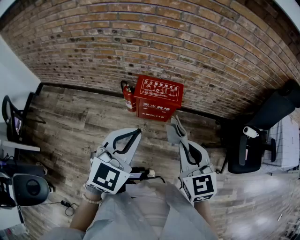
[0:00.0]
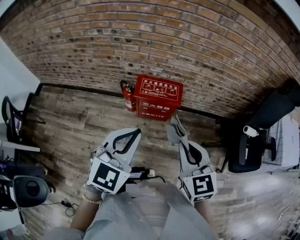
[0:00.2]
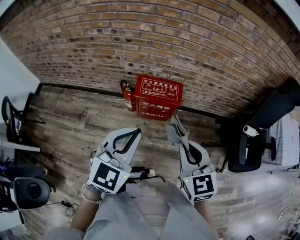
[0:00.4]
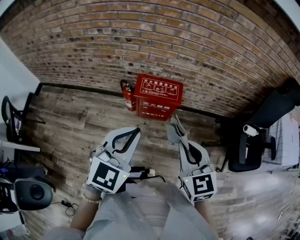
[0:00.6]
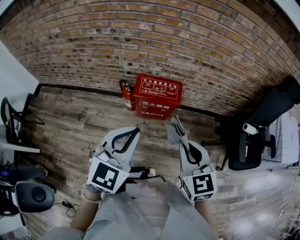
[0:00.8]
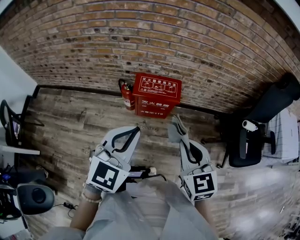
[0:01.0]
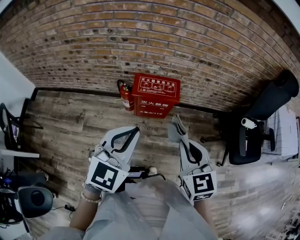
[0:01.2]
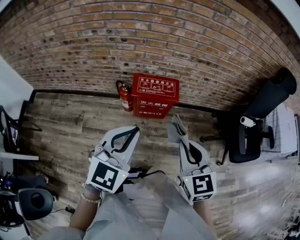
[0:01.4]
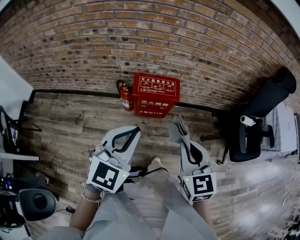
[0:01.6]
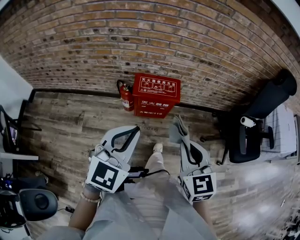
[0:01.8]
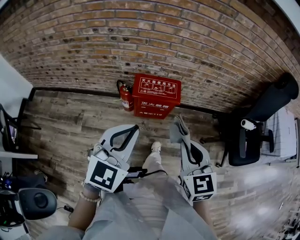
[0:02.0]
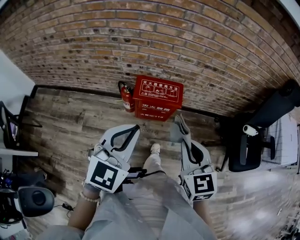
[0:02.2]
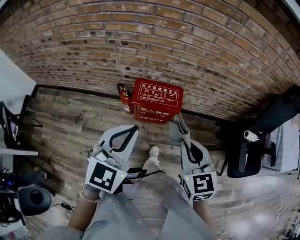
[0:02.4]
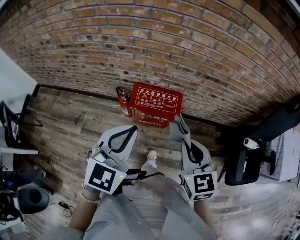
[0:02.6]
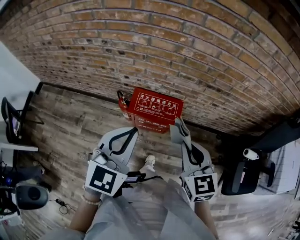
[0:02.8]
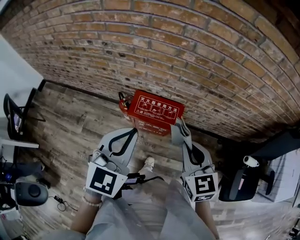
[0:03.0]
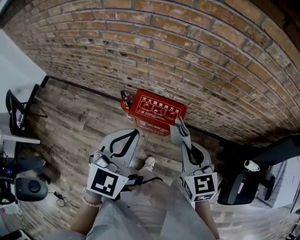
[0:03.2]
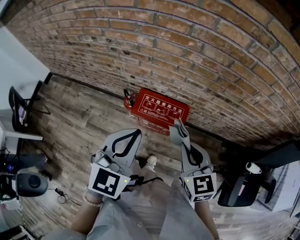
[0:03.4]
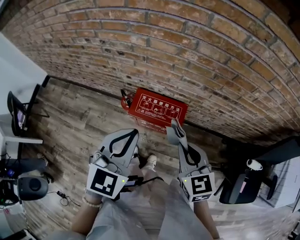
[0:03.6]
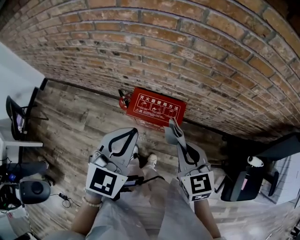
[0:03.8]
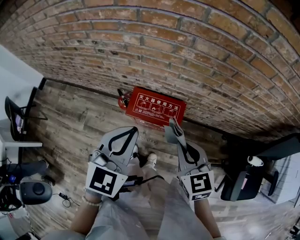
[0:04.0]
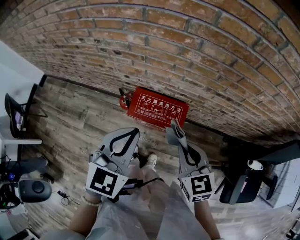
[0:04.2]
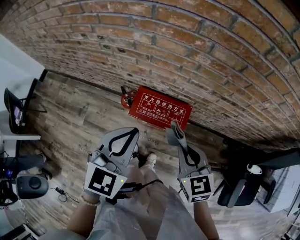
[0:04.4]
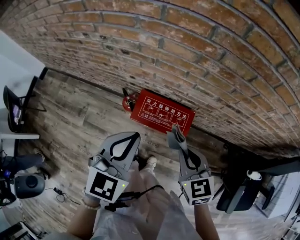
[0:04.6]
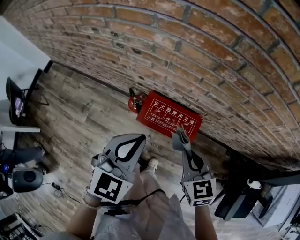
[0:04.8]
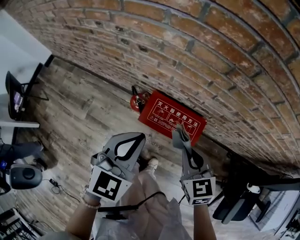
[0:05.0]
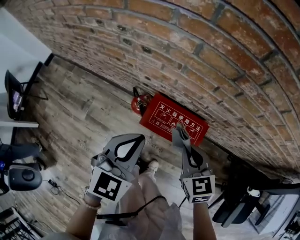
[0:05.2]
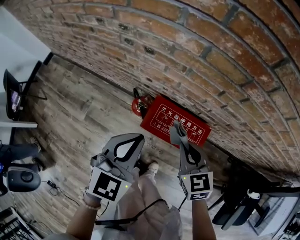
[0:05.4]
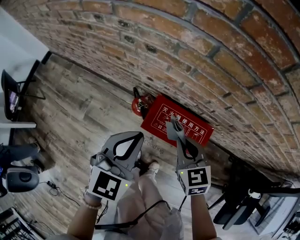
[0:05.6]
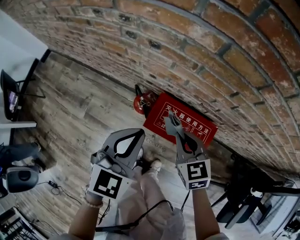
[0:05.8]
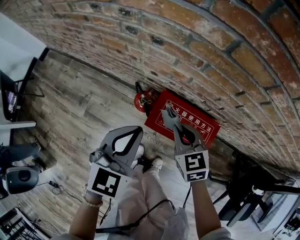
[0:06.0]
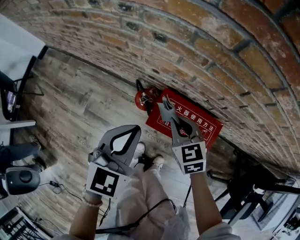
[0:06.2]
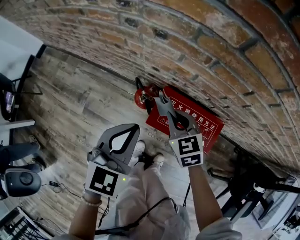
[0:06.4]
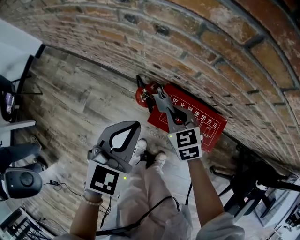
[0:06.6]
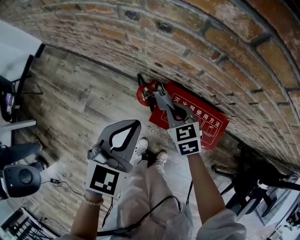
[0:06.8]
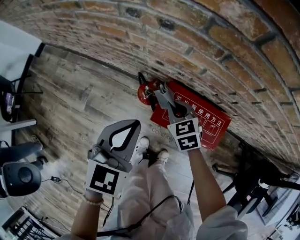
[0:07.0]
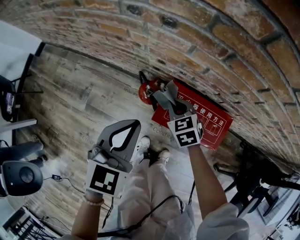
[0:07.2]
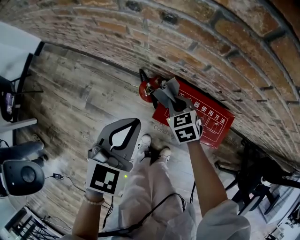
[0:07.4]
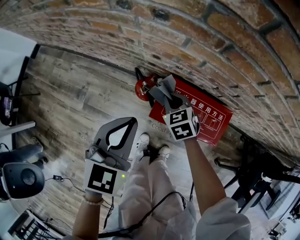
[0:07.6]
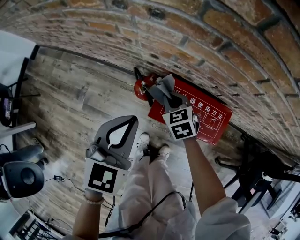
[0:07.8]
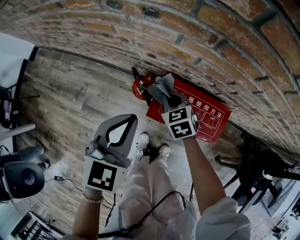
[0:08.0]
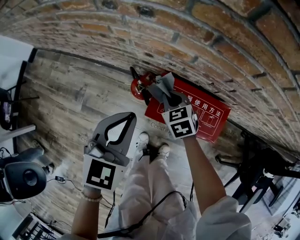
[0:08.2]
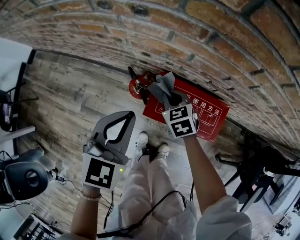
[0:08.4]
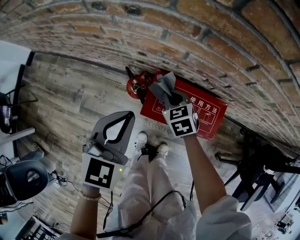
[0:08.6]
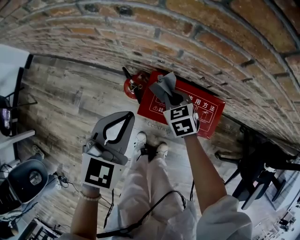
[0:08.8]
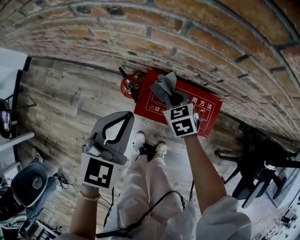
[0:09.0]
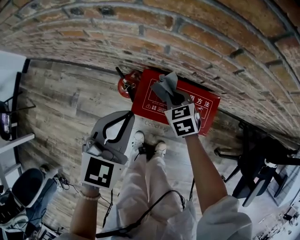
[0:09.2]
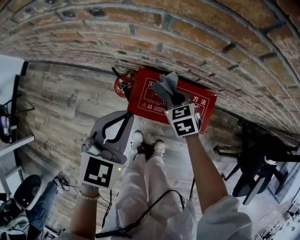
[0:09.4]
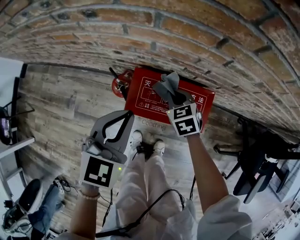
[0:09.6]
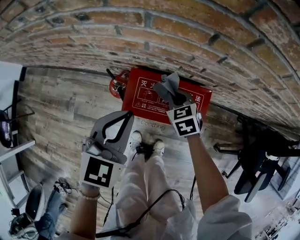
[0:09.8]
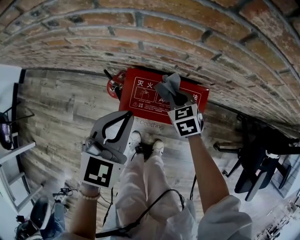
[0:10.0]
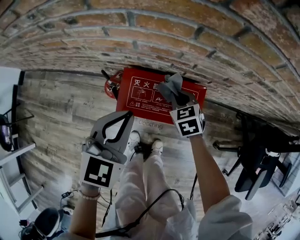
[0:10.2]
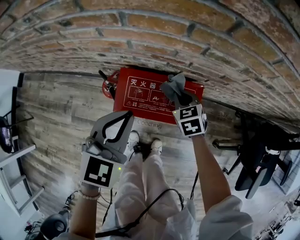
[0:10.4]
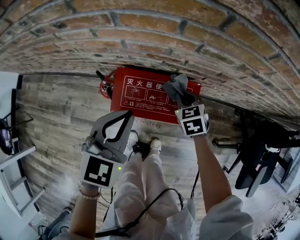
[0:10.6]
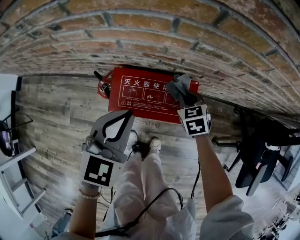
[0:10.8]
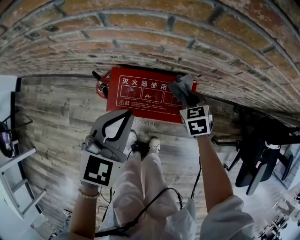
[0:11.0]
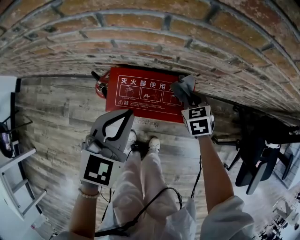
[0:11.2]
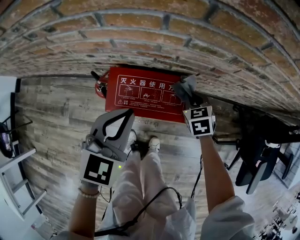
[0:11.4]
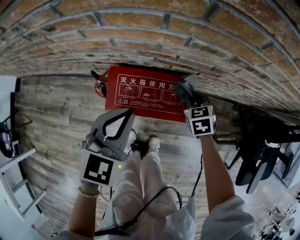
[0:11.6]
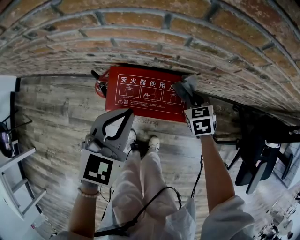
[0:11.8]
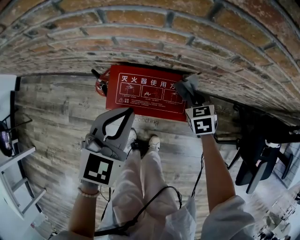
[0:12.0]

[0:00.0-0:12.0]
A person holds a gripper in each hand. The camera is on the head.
0:00.0 to 0:01.6: There are only small adjustments of the grippers.
0:01.6 to 0:03.0: The two grippers go roughly 25 cm forward.
0:03.0 to 0:04.4: The left gripper goes roughly 5 cm forward. The right gripper shifts about 10 cm downward and forward.
0:04.4 to 0:06.0: The right gripper moves downward, forward and to the left, roughly 30 cm. The left gripper moves downward, to the left and forward, some 20 cm.
0:06.0 to 0:07.6: The right gripper is displaced downward and forward by roughly 15 cm. The left gripper shifts approximately 5 cm downward.
0:07.6 to 0:09.0: Both grippers move to the right, approximately 5 cm.
0:09.0 to 0:10.4: The left gripper heads to the right, covering some 10 cm. Meanwhile the right gripper travels to the right by about 15 cm.
0:10.4 to 0:12.0: The right gripper goes approximately 10 cm to the right.

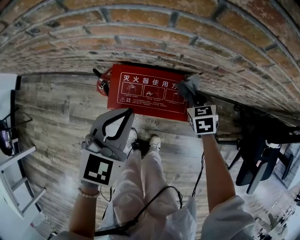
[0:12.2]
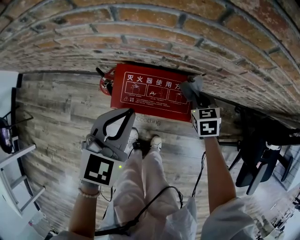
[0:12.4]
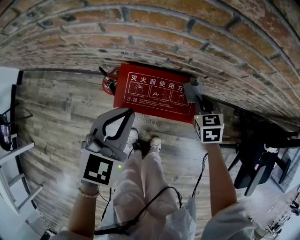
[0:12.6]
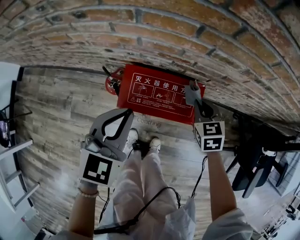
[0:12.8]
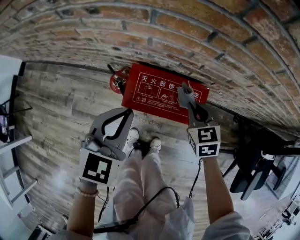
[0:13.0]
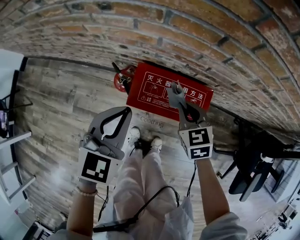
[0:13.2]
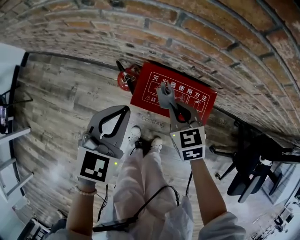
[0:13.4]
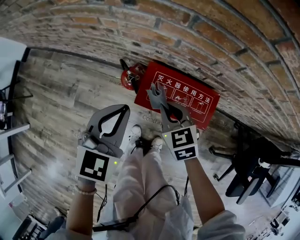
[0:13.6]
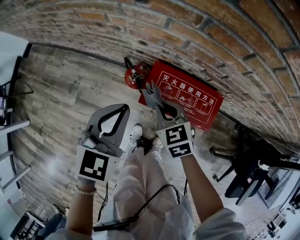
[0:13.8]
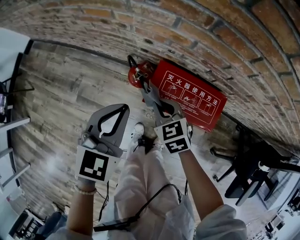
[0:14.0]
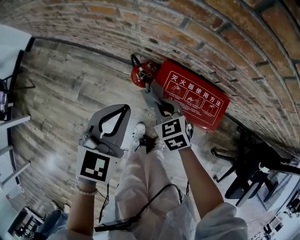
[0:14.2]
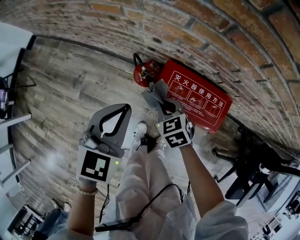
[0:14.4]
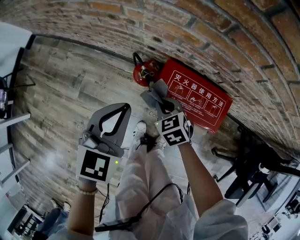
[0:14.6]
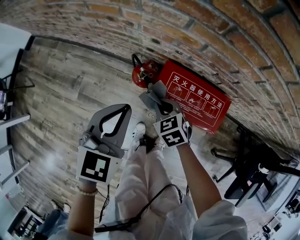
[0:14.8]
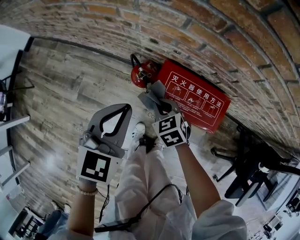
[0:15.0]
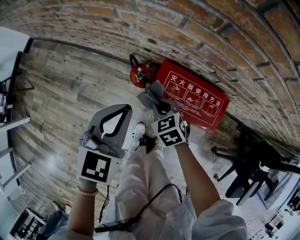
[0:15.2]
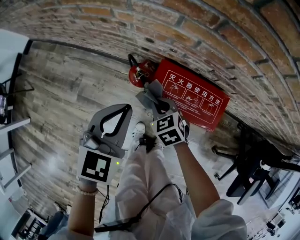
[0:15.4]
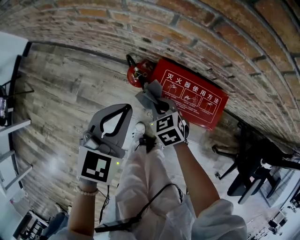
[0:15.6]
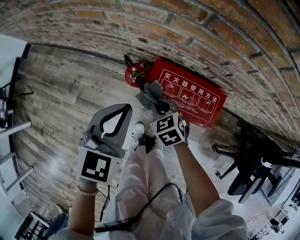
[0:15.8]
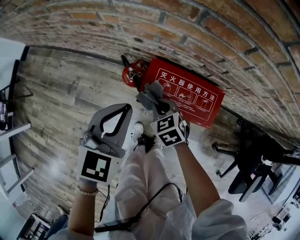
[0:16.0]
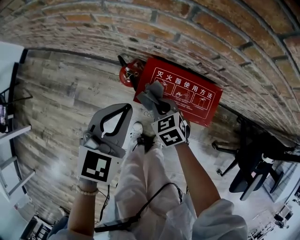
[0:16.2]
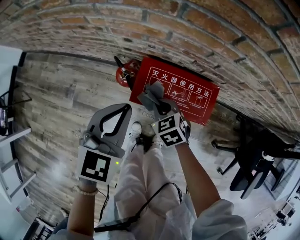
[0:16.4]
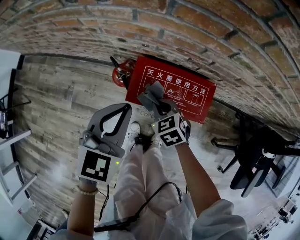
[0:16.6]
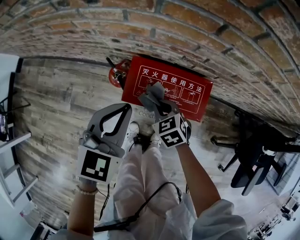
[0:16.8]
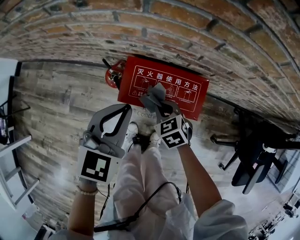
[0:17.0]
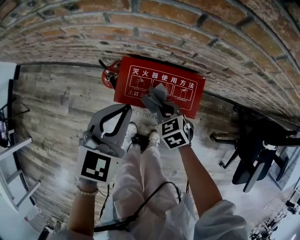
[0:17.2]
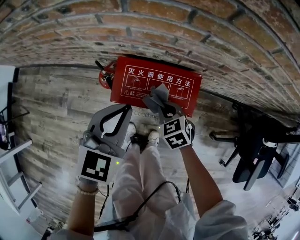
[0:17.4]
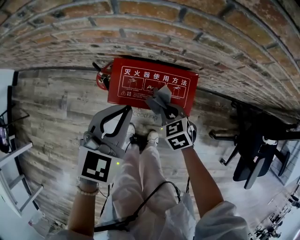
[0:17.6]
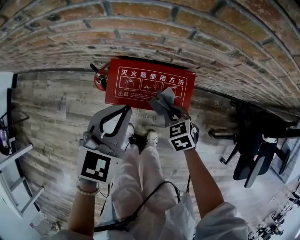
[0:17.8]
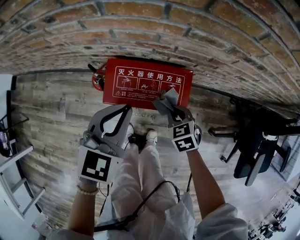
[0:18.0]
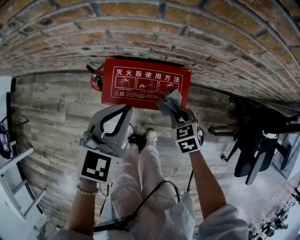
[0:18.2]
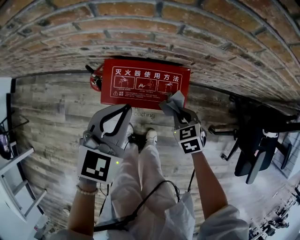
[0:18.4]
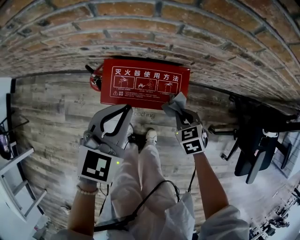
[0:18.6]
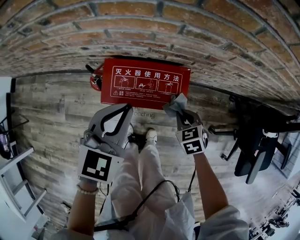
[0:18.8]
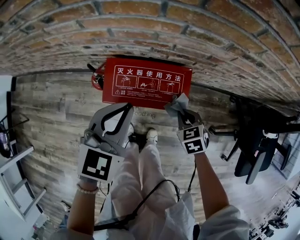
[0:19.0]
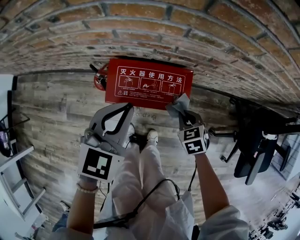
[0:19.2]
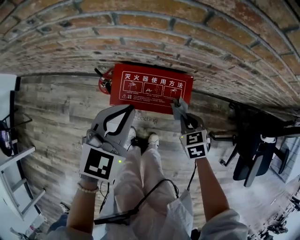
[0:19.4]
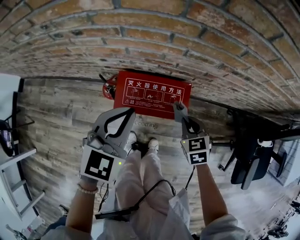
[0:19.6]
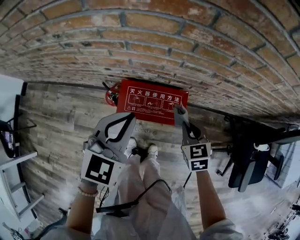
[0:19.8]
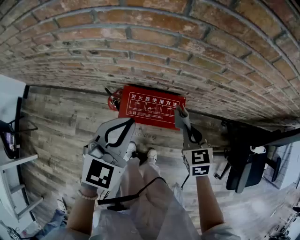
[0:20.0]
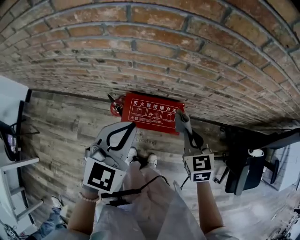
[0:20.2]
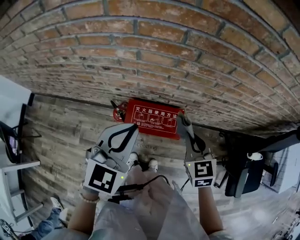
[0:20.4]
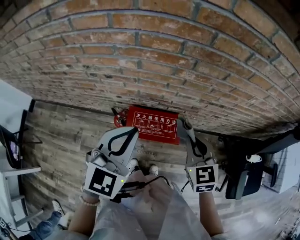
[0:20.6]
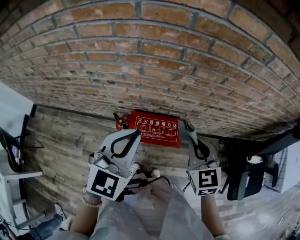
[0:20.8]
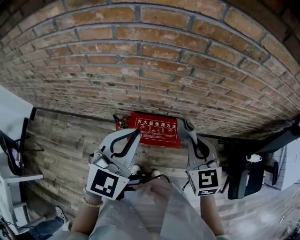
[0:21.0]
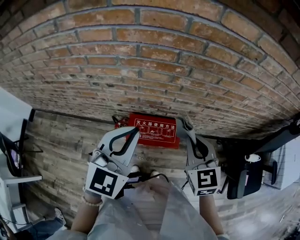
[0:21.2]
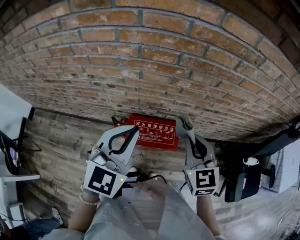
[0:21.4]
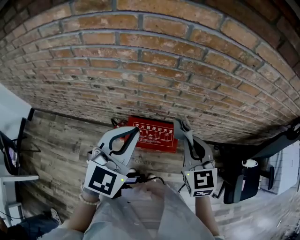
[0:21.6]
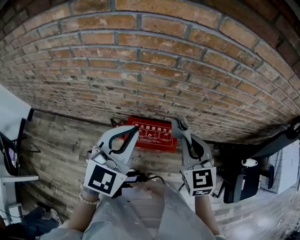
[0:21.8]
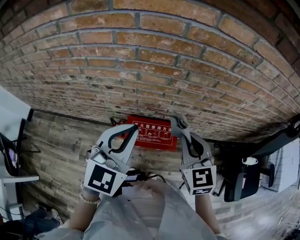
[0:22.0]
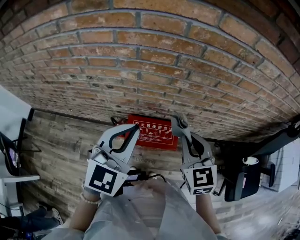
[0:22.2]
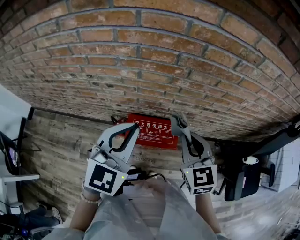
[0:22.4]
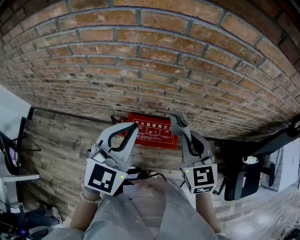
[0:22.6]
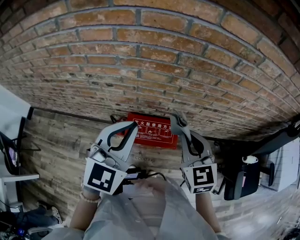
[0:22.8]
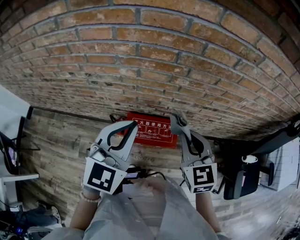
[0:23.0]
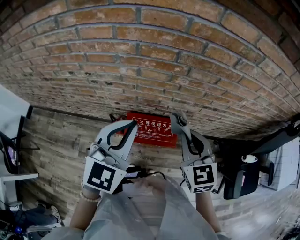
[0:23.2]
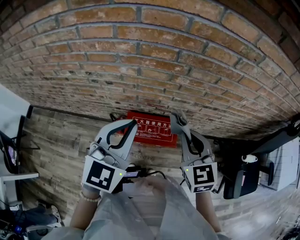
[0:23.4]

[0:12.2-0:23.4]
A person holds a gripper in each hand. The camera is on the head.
0:12.2 to 0:13.8: The left gripper heads to the left, covering some 15 cm; the right gripper heads to the left, covering roughly 30 cm, and rotates approximately 30 degrees.
0:13.8 to 0:15.4: The right gripper is displaced downward by roughly 5 cm.
0:15.4 to 0:17.0: Both grippers move to the right, about 10 cm.
0:17.0 to 0:18.6: The left gripper goes some 10 cm to the right, while the right gripper is displaced to the right by roughly 15 cm.
0:18.6 to 0:20.2: The grippers both shift upward by roughly 25 cm. The right gripper turns by roughly 20 degrees.
0:20.2 to 0:21.8: The two grippers go about 15 cm upward.
0:21.8 to 0:23.4: Both grippers stay about where they are.

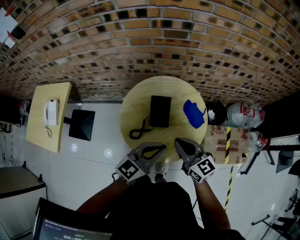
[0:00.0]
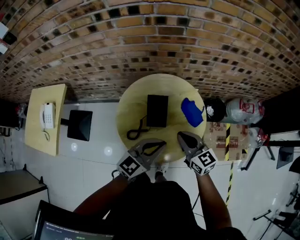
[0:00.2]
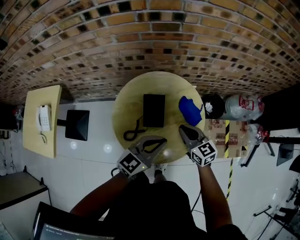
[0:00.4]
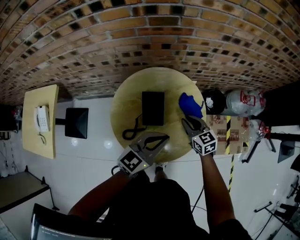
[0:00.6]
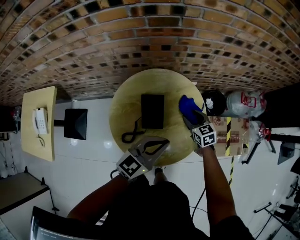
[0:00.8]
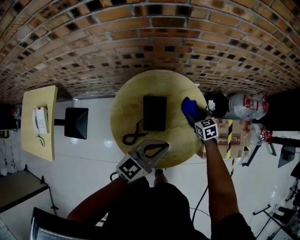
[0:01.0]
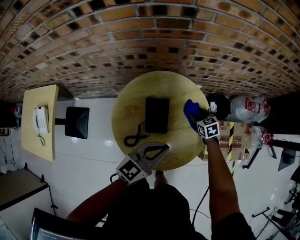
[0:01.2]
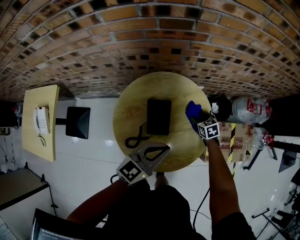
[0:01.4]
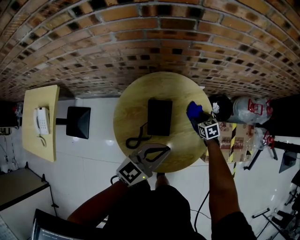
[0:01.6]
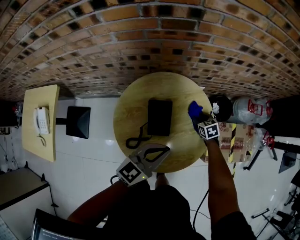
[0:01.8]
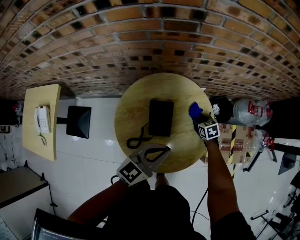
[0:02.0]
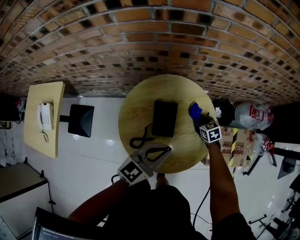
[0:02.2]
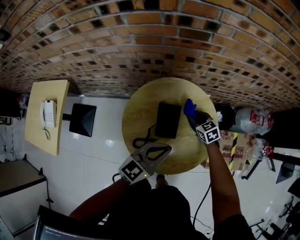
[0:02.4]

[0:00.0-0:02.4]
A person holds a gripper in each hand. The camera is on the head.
0:00.0 to 0:01.2: The right gripper travels downward and forward by some 35 cm, tips its fingers downward by approximately 40 degrees, and opens its fingers. Meanwhile the left gripper goes roughly 10 cm forward and downward.
0:01.2 to 0:02.4: The right gripper goes some 10 cm to the left, and closes its fingers.
